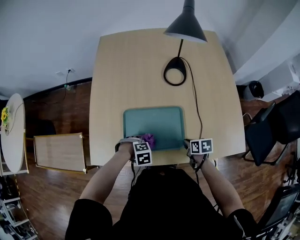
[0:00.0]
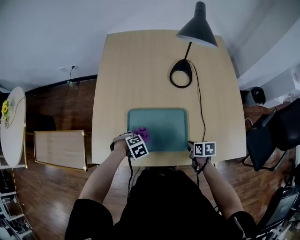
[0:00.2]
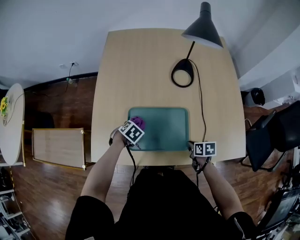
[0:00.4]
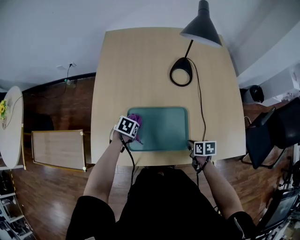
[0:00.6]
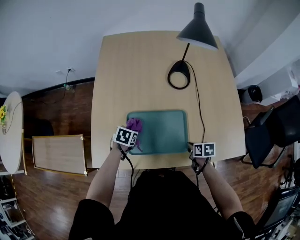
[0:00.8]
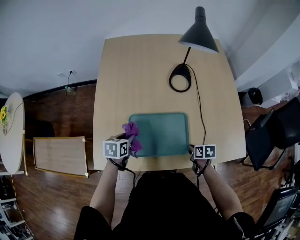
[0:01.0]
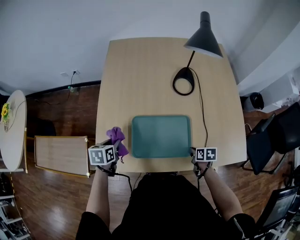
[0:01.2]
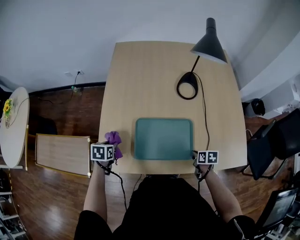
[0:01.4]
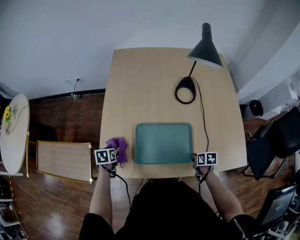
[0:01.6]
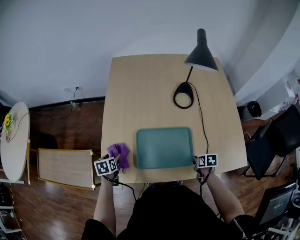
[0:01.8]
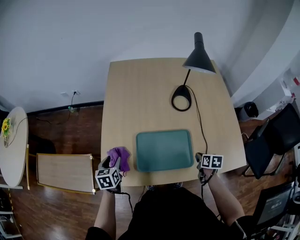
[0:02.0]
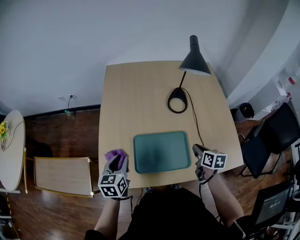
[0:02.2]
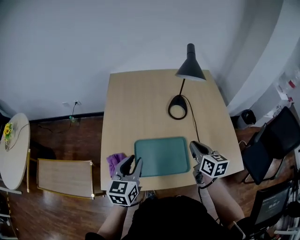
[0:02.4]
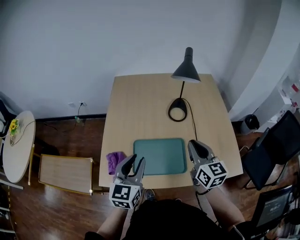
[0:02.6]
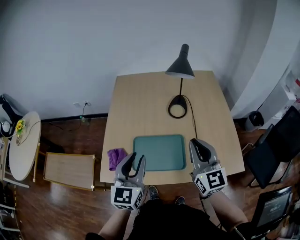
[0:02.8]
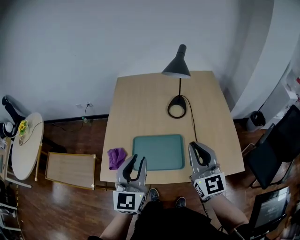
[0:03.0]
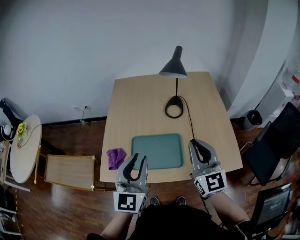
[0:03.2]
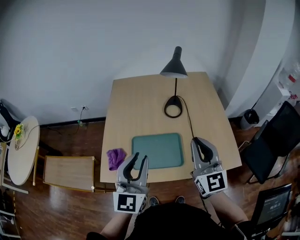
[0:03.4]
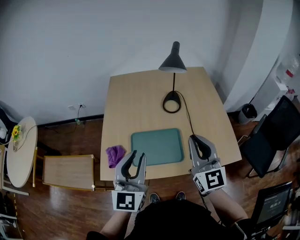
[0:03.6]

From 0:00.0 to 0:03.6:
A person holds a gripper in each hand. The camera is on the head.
From 0:00.0 to 0:01.8: The left gripper moves some 25 cm, rolls counterclockwise, seen from behind, by roughly 90 degrees, and opens its fingers.
From 0:01.8 to 0:03.6: The right gripper goes some 40 cm upward, and tips its fingers upward by approximately 70 degrees. Meanwhile the left gripper travels upward and to the right by about 40 cm, tilts its fingers approximately 60 degrees upward, and closes its fingers.

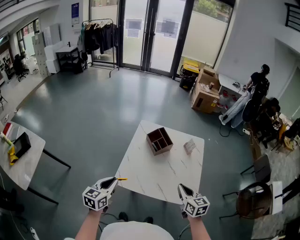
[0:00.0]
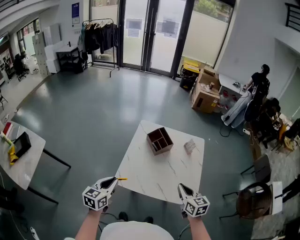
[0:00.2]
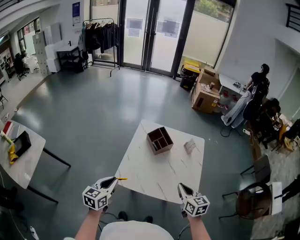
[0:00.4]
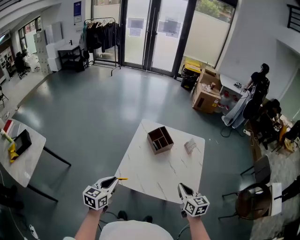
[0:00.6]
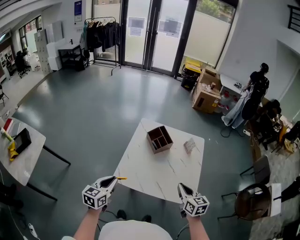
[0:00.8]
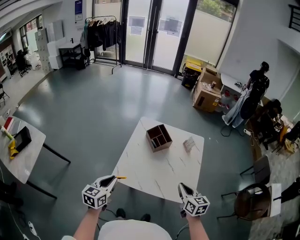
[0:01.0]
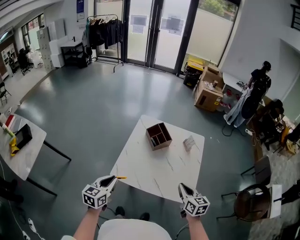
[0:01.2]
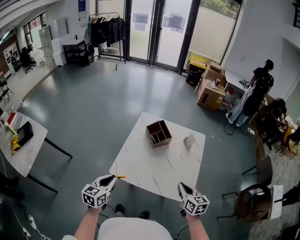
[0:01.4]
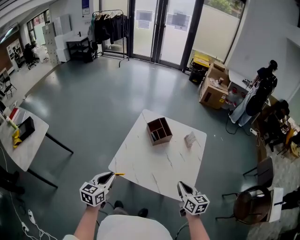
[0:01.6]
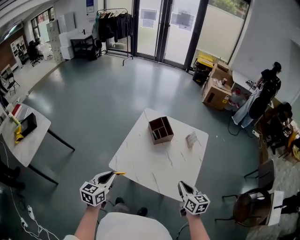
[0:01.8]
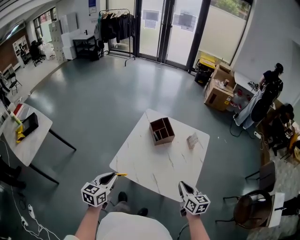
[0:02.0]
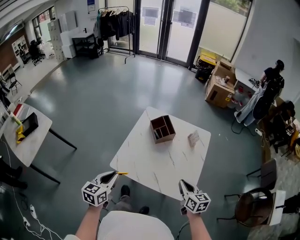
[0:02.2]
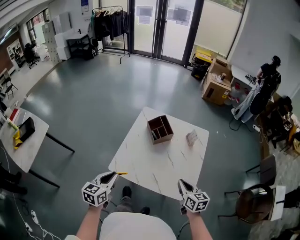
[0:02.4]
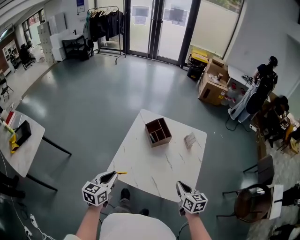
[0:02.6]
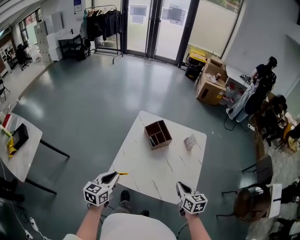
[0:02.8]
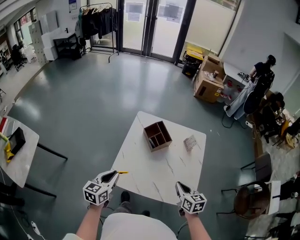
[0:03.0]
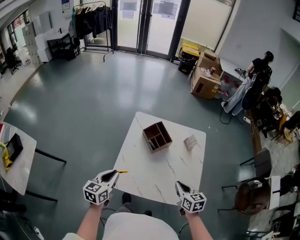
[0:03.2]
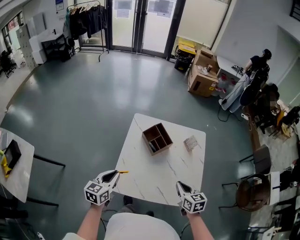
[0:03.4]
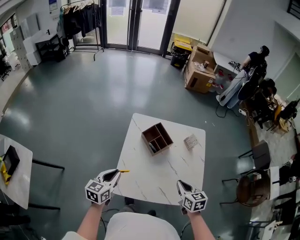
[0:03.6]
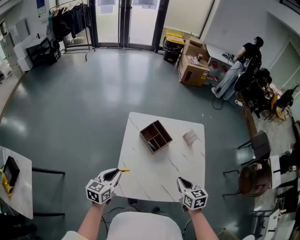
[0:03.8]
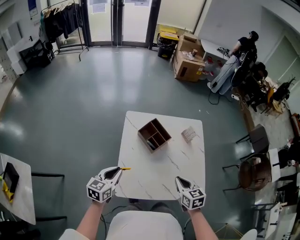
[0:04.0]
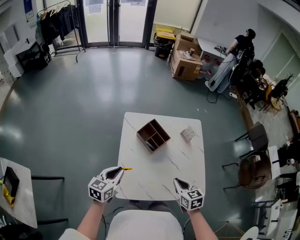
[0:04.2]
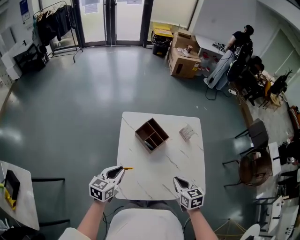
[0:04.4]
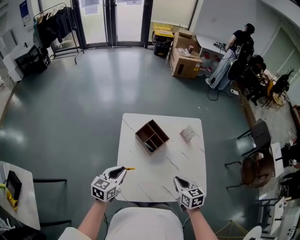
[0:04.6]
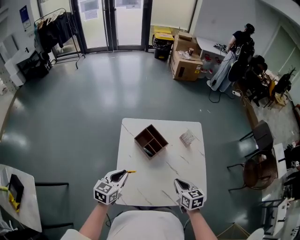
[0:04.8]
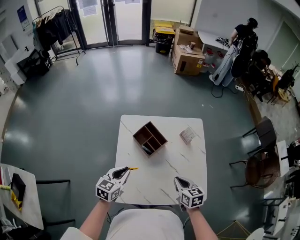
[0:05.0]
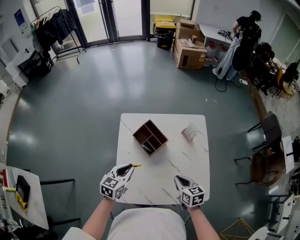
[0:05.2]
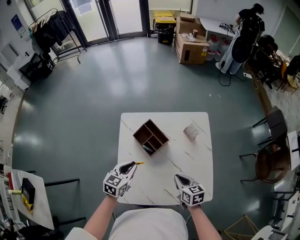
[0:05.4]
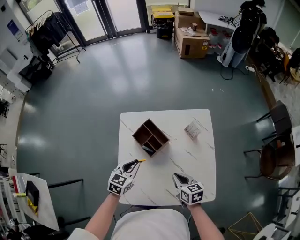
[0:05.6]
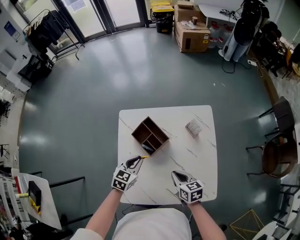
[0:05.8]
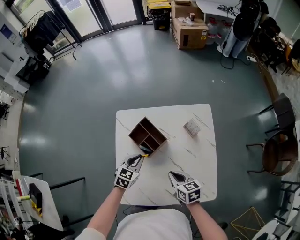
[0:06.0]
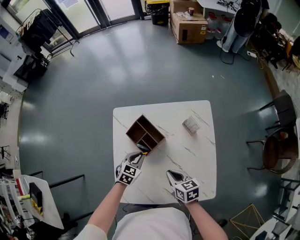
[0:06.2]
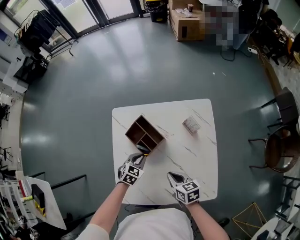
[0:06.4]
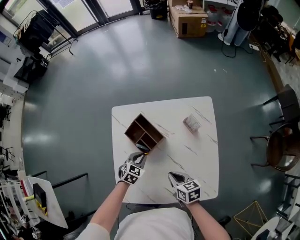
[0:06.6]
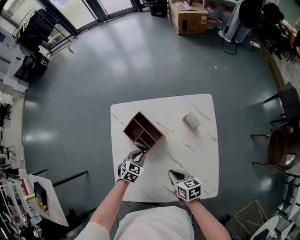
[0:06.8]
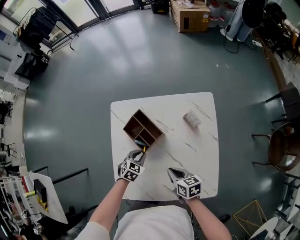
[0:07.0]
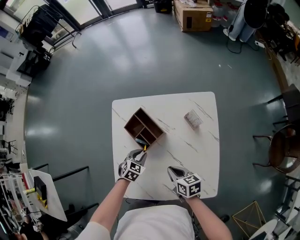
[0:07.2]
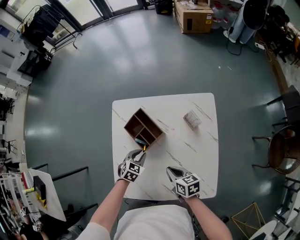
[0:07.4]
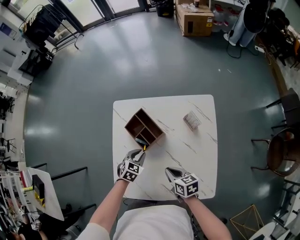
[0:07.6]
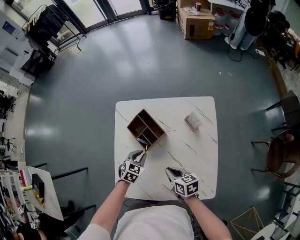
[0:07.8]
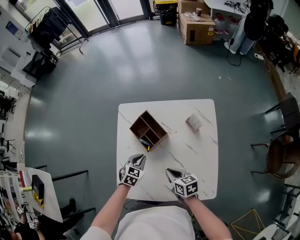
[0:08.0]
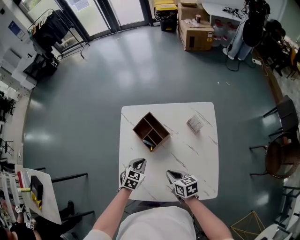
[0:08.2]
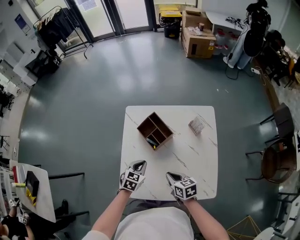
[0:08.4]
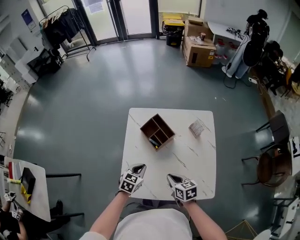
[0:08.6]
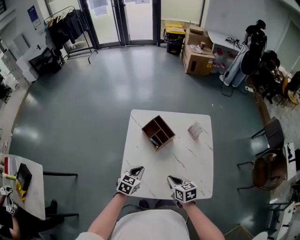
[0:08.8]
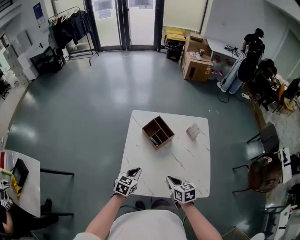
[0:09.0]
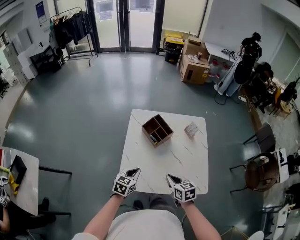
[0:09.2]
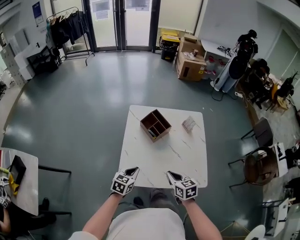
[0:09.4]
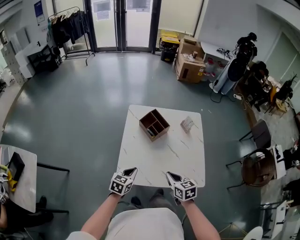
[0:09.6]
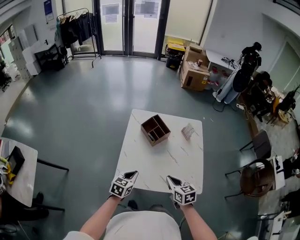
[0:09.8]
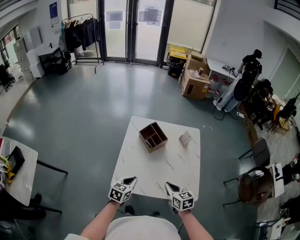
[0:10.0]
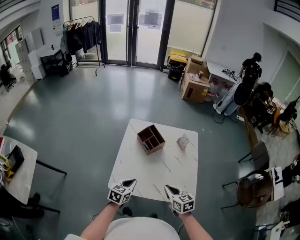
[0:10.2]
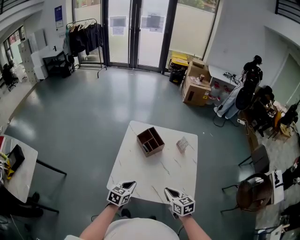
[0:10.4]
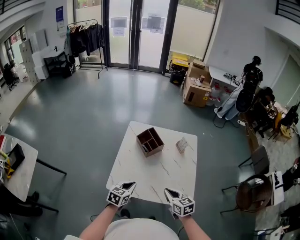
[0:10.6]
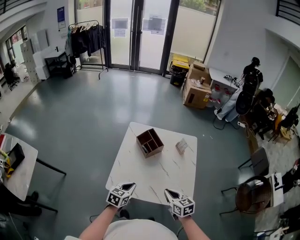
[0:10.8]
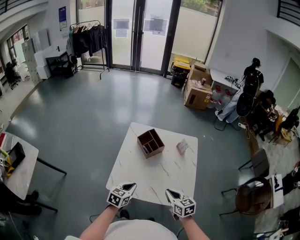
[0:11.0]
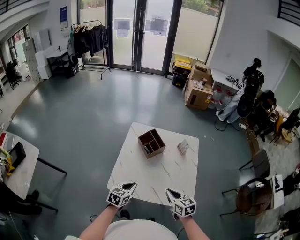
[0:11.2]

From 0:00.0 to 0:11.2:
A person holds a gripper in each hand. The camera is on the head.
From 0:00.0 to 0:01.6: The two grippers go about 5 cm to the right.
From 0:01.6 to 0:03.2: The left gripper is displaced forward by about 15 cm. The right gripper travels forward and to the left by some 10 cm.
From 0:03.2 to 0:04.8: The left gripper is displaced forward by about 15 cm, and rotates about 20 degrees; the right gripper shifts about 5 cm forward.
From 0:04.8 to 0:06.4: The right gripper moves downward and forward, about 15 cm, while the left gripper moves downward, to the right and forward, about 30 cm, and turns by roughly 30 degrees.
From 0:06.4 to 0:08.0: The grippers move only a little.
From 0:08.0 to 0:09.6: The left gripper heads backward, upward and to the left, covering approximately 30 cm, and changes its angle by roughly 20 degrees. The right gripper moves backward and upward, approximately 20 cm, and swivels roughly 20 degrees.
From 0:09.6 to 0:11.2: The grippers both shift to the right by some 10 cm.

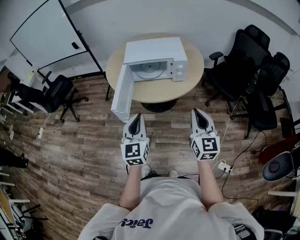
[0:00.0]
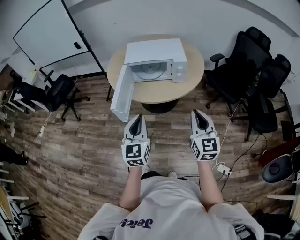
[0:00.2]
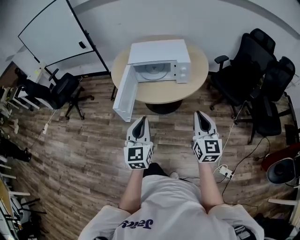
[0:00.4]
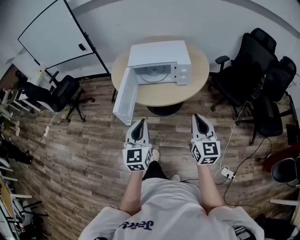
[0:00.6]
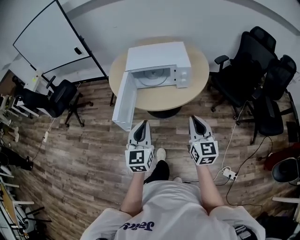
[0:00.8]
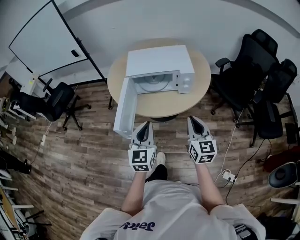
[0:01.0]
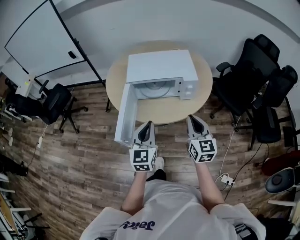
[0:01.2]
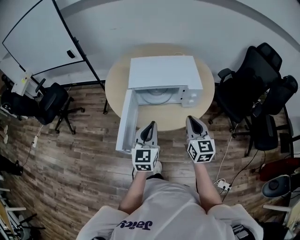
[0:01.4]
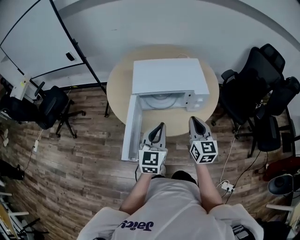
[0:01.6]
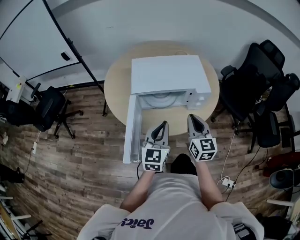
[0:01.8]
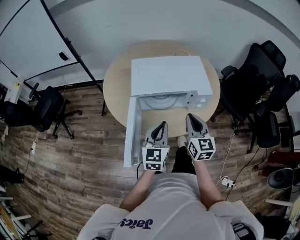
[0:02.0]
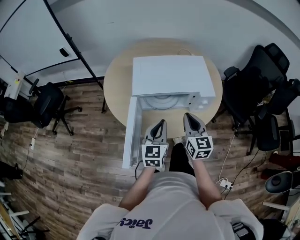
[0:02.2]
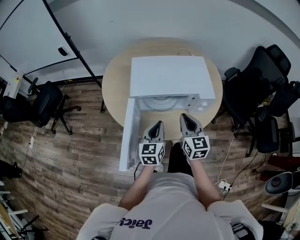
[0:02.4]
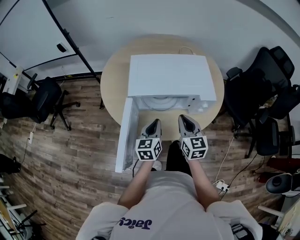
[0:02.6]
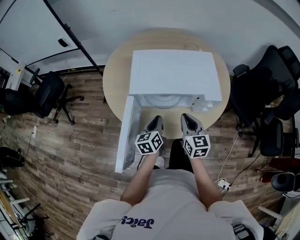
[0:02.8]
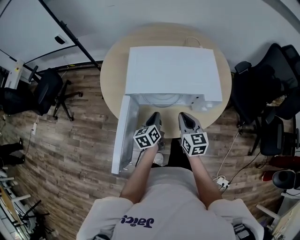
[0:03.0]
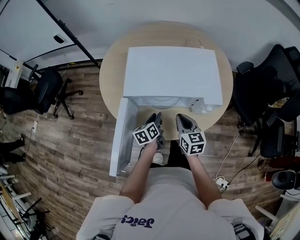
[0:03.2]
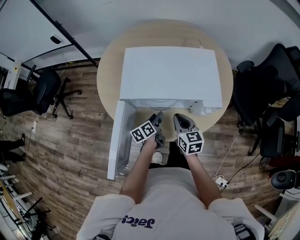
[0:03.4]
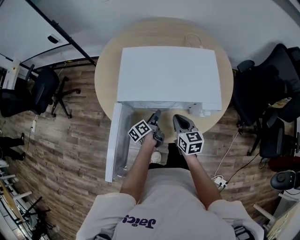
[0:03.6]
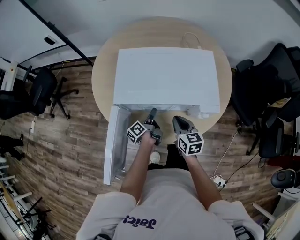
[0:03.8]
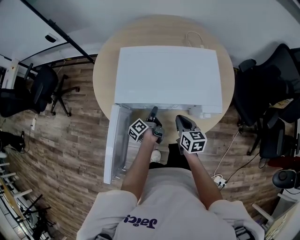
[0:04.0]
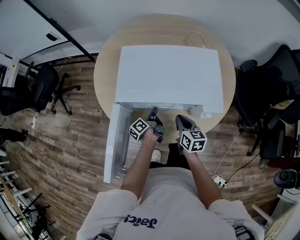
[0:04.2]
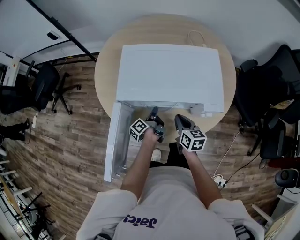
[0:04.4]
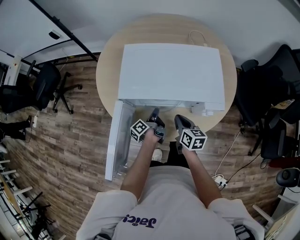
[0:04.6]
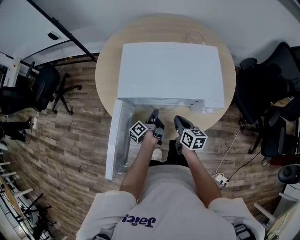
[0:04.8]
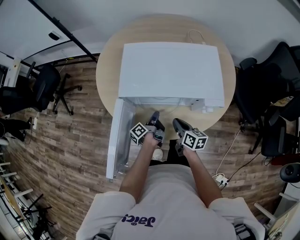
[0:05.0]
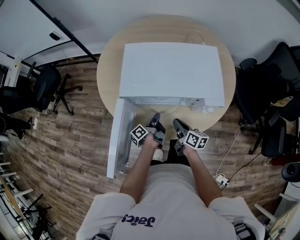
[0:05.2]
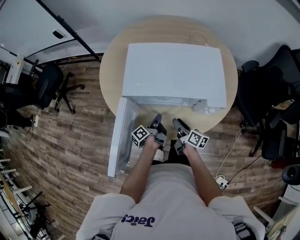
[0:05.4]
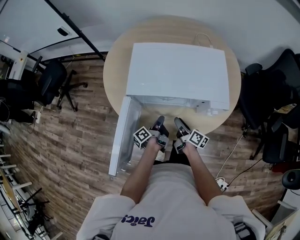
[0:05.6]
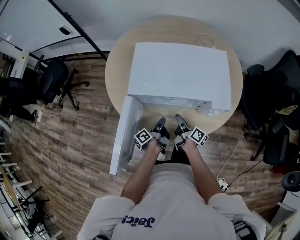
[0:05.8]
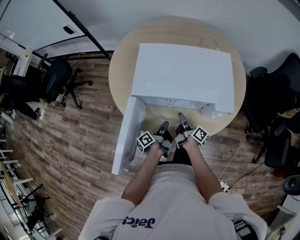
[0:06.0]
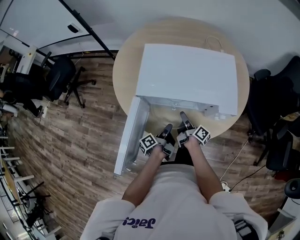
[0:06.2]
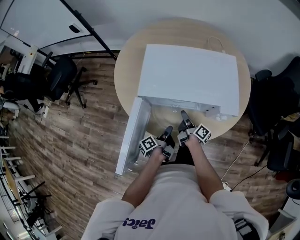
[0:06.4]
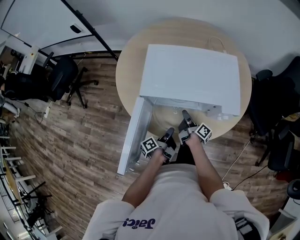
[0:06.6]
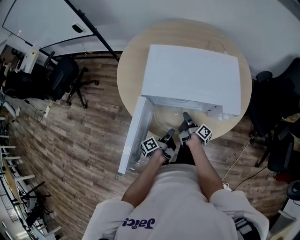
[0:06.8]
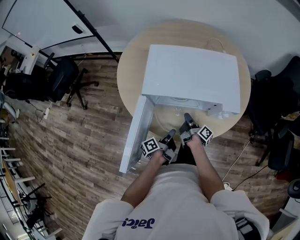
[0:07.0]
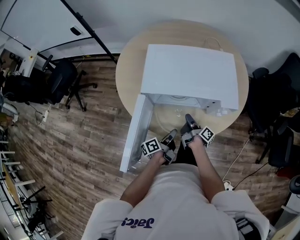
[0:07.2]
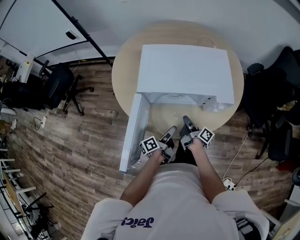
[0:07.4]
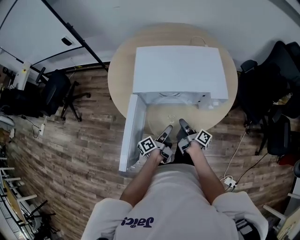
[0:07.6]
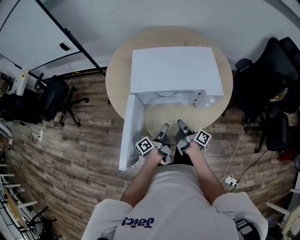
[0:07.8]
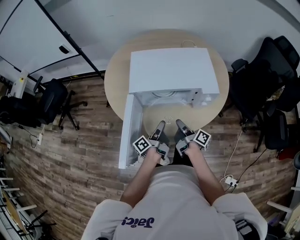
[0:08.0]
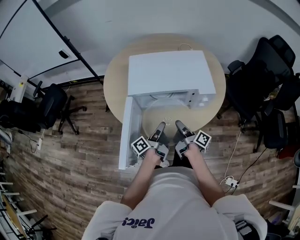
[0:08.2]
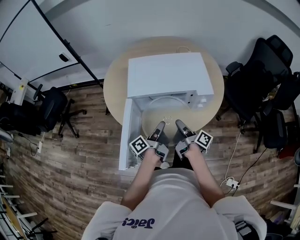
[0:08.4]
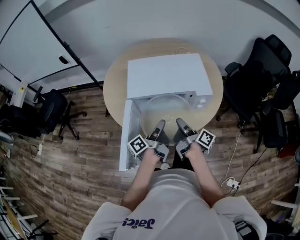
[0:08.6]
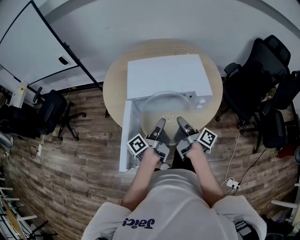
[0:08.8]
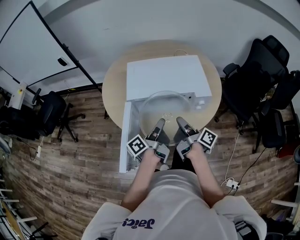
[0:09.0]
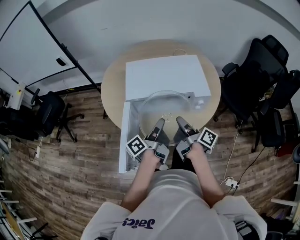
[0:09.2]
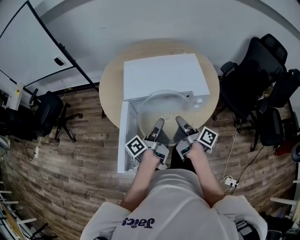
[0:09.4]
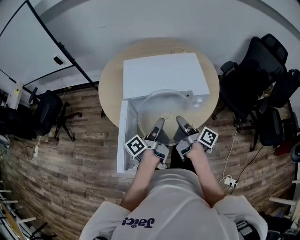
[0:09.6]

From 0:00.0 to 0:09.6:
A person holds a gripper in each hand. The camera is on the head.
From 0:00.0 to 0:01.6: The grippers both shift forward by some 25 cm.
From 0:01.6 to 0:03.2: The right gripper is displaced downward and forward by about 20 cm, and rotates some 20 degrees, while the left gripper moves downward and forward, approximately 30 cm, twists some 50 degrees counterclockwise, seen from behind, and opens its fingers.
From 0:03.2 to 0:04.8: Both grippers move downward, about 5 cm. The right gripper rotates about 20 degrees; the left gripper twists about 50 degrees counterclockwise, seen from behind, and opens, then closes once more.
From 0:04.8 to 0:06.4: The left gripper travels backward by approximately 10 cm. The right gripper travels downward by about 5 cm, rolls clockwise, seen from behind, by roughly 40 degrees, and opens.
From 0:06.4 to 0:08.0: The right gripper heads backward and upward, covering roughly 15 cm, and closes. Meanwhile the left gripper is displaced upward by some 10 cm, and opens up.
From 0:08.0 to 0:09.6: The two grippers go approximately 15 cm upward. The left gripper closes up.
